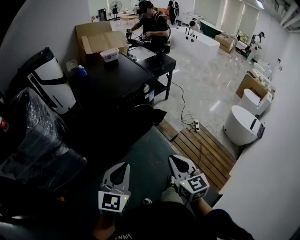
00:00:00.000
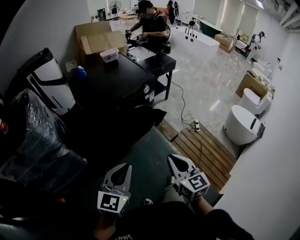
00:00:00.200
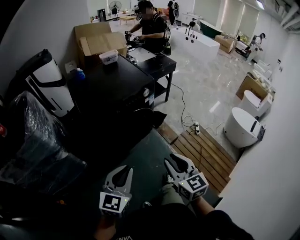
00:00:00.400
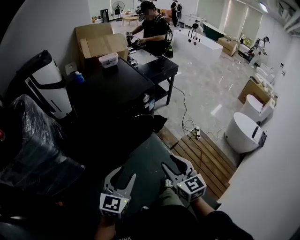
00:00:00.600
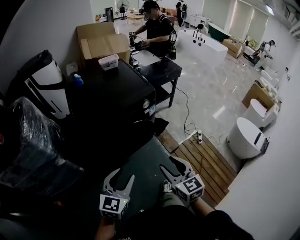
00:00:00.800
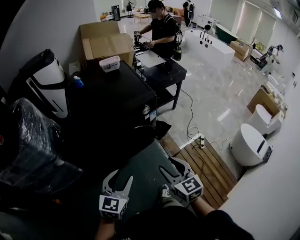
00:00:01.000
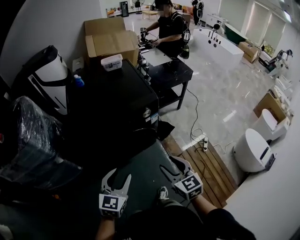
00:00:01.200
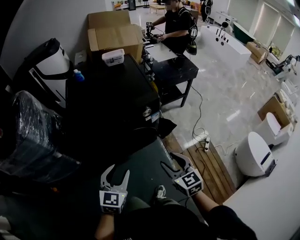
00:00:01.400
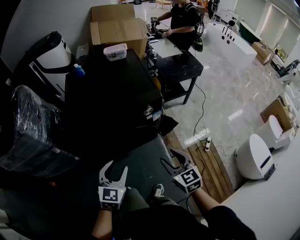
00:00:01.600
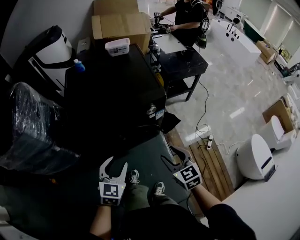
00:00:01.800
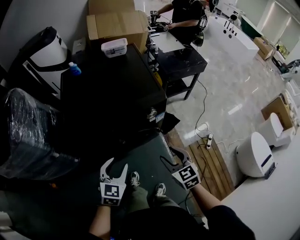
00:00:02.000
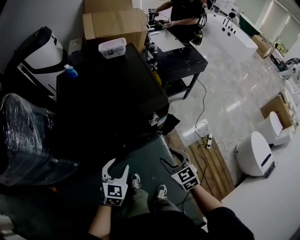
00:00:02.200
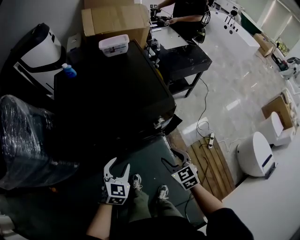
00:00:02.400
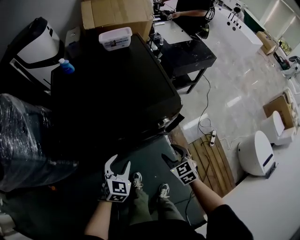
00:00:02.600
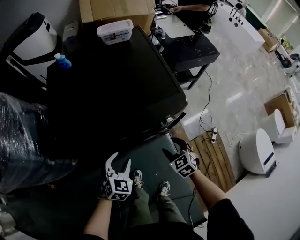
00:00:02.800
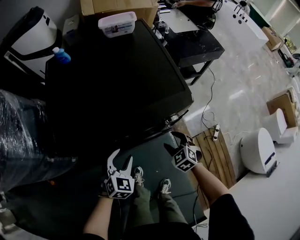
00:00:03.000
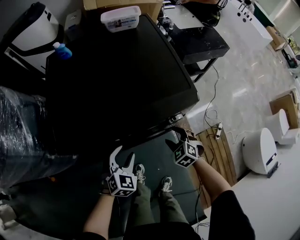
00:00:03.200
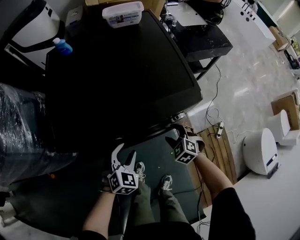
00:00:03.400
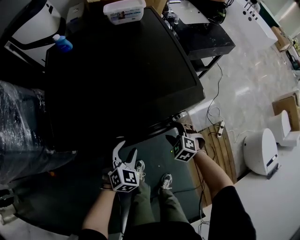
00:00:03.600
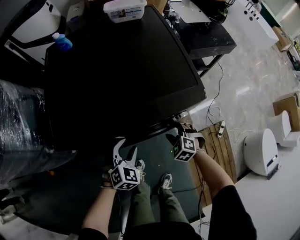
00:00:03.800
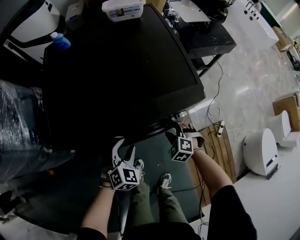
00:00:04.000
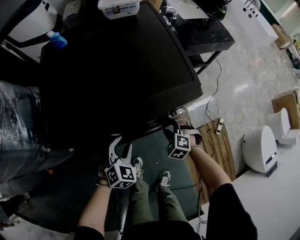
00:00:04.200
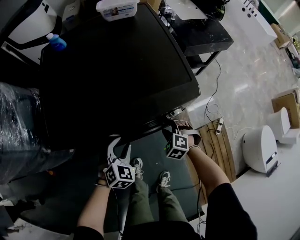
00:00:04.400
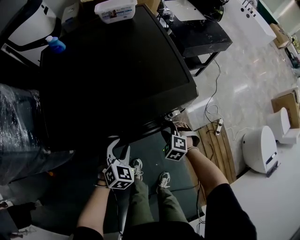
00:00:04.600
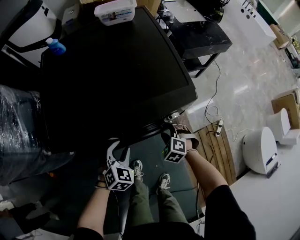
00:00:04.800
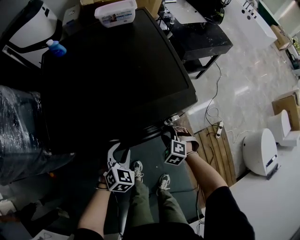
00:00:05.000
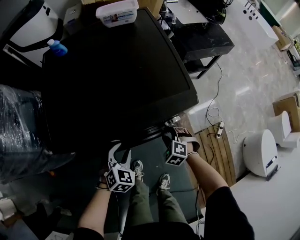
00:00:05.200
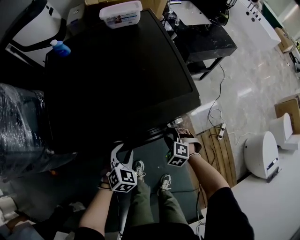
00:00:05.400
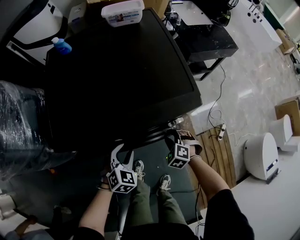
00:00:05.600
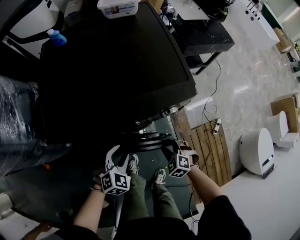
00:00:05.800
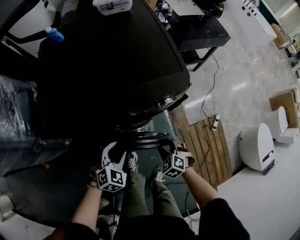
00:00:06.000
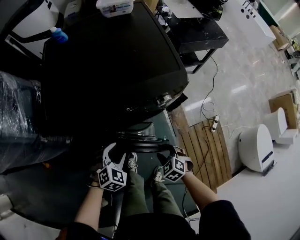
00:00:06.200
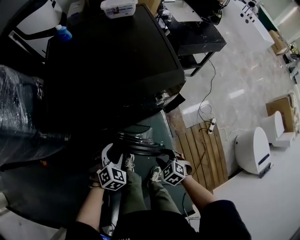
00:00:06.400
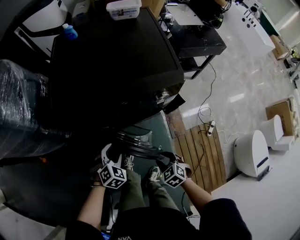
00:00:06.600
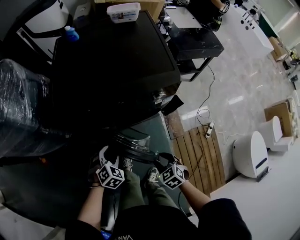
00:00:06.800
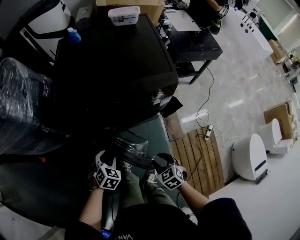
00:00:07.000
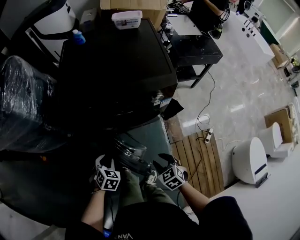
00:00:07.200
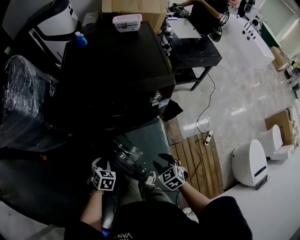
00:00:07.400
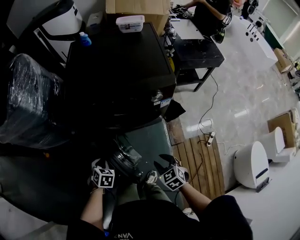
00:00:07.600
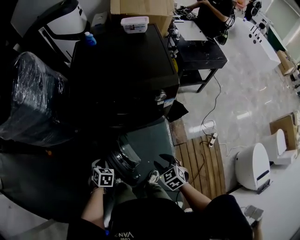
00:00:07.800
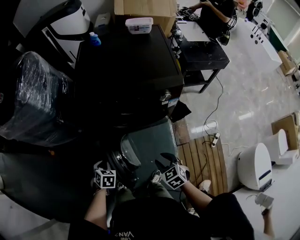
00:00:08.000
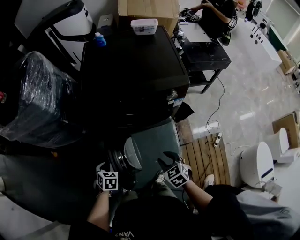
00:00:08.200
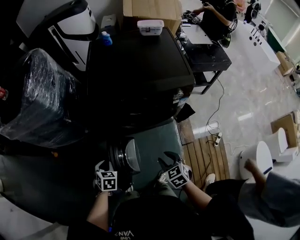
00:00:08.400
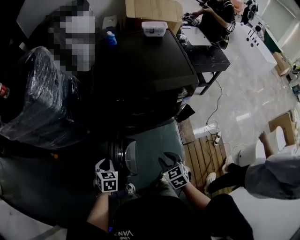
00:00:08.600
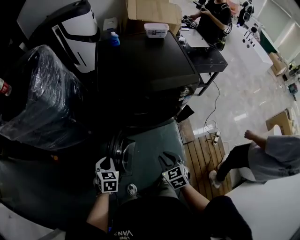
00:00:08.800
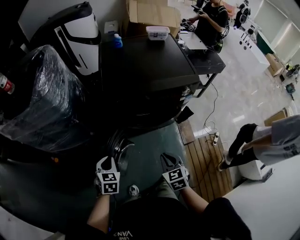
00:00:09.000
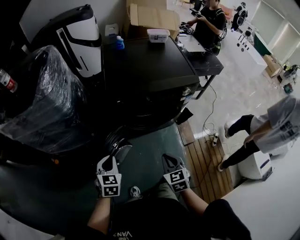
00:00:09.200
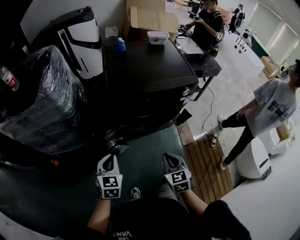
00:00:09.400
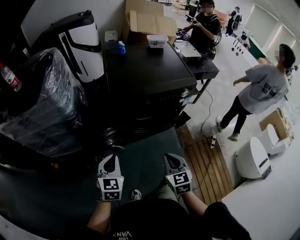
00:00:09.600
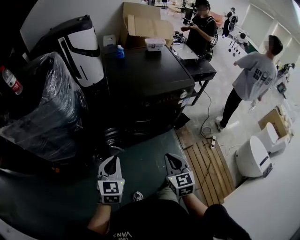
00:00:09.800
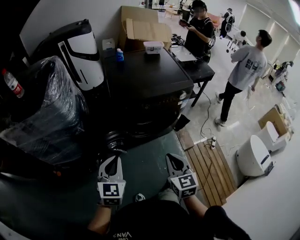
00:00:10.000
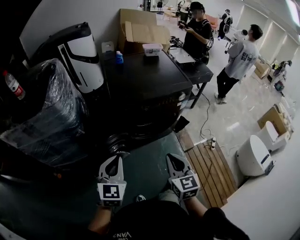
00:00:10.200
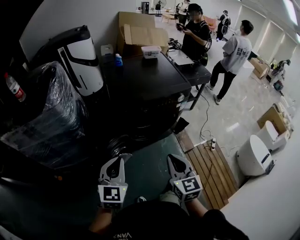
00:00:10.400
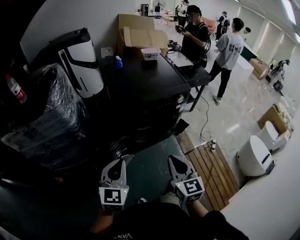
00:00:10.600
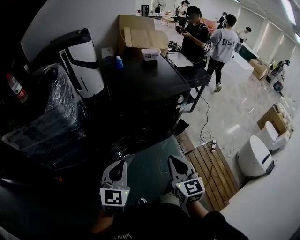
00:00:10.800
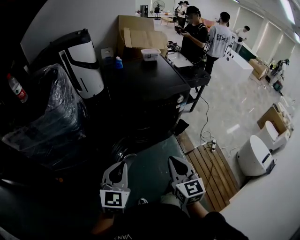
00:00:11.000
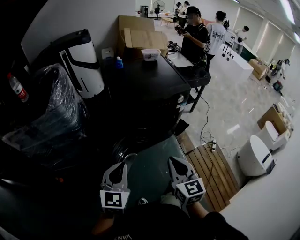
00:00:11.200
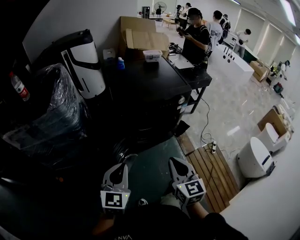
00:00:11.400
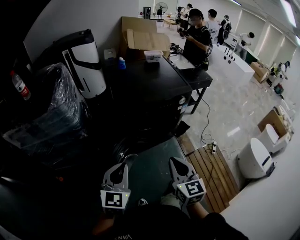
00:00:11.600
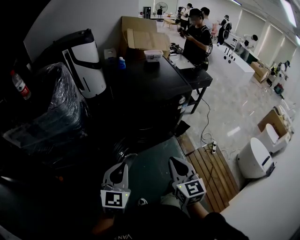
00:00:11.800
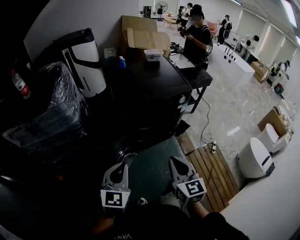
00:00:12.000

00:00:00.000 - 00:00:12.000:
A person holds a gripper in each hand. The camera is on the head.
00:00:00.000 - 00:00:01.600: The left gripper goes about 30 cm forward and to the right, turns by roughly 20 degrees, and opens its fingers, while the right gripper heads forward, covering approximately 30 cm, changes its angle by roughly 30 degrees, and opens.
00:00:01.600 - 00:00:03.000: The right gripper travels downward and forward by some 30 cm, and turns by roughly 30 degrees. The left gripper goes about 25 cm forward and downward, and turns by roughly 20 degrees.
00:00:03.000 - 00:00:04.400: The right gripper goes about 5 cm downward, turns by approximately 20 degrees, and closes.
00:00:04.400 - 00:00:06.000: The left gripper travels backward by some 5 cm, while the right gripper travels backward by about 15 cm.
00:00:06.000 - 00:00:07.600: The left gripper shifts by roughly 20 cm, rotates about 50 degrees, and closes up, while the right gripper ends up some 20 cm from where it was.
00:00:07.600 - 00:00:09.000: The grippers both shift to the left and upward by approximately 20 cm. The left gripper changes its angle by some 20 degrees, while the right gripper closes its fingers.
00:00:09.000 - 00:00:10.400: The left gripper heads upward, covering about 20 cm, and swivels about 30 degrees. Meanwhile the right gripper moves upward and backward, roughly 15 cm, and turns by roughly 30 degrees.
00:00:10.400 - 00:00:12.000: The grippers make only small movements.

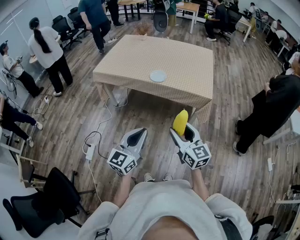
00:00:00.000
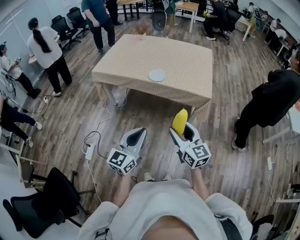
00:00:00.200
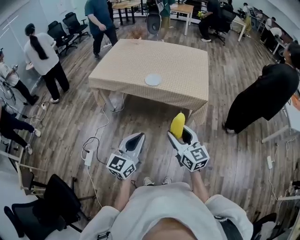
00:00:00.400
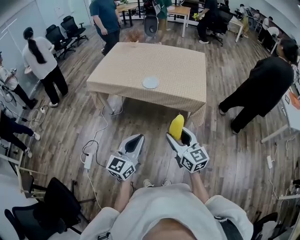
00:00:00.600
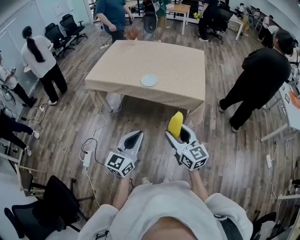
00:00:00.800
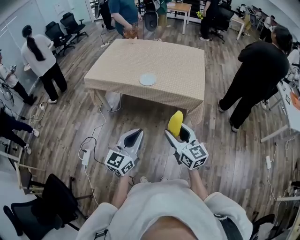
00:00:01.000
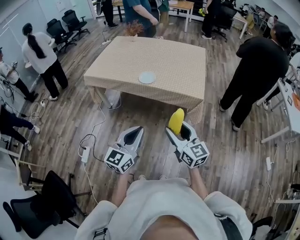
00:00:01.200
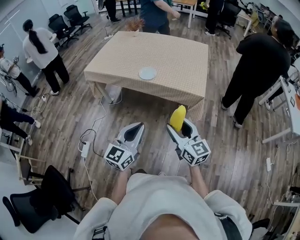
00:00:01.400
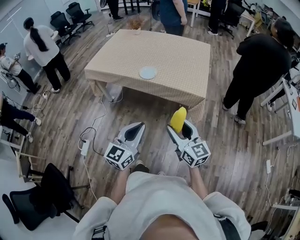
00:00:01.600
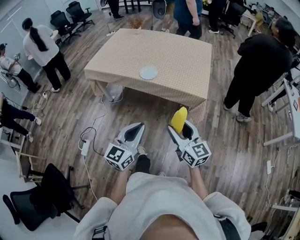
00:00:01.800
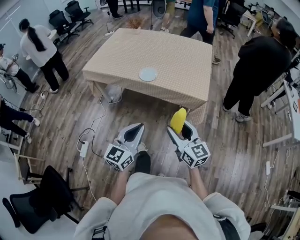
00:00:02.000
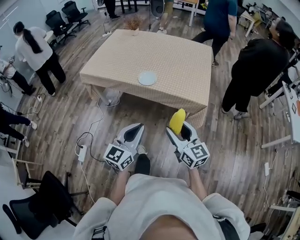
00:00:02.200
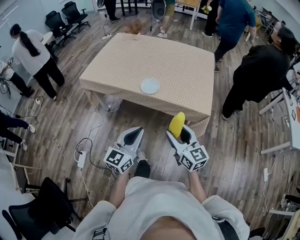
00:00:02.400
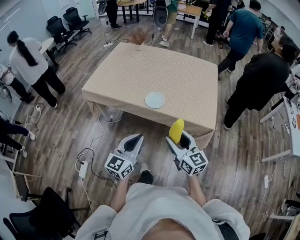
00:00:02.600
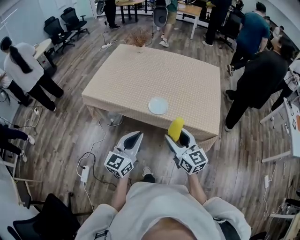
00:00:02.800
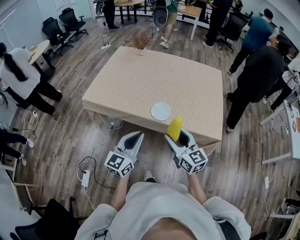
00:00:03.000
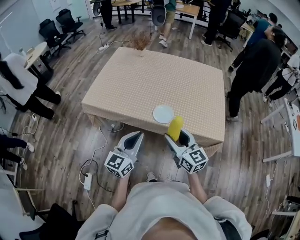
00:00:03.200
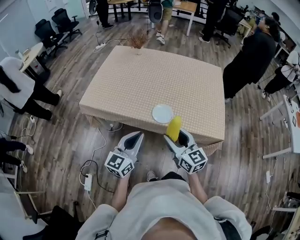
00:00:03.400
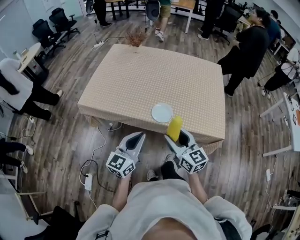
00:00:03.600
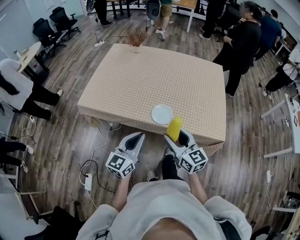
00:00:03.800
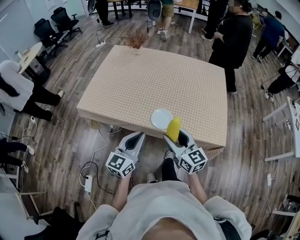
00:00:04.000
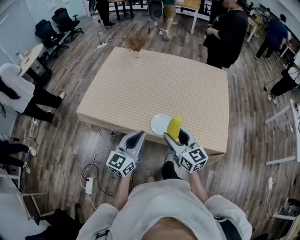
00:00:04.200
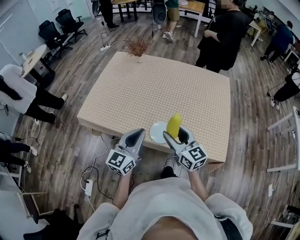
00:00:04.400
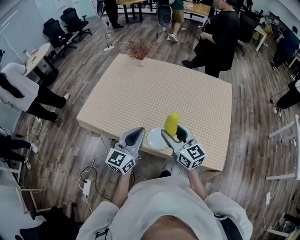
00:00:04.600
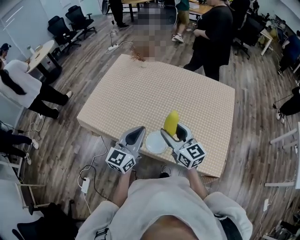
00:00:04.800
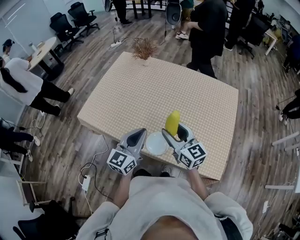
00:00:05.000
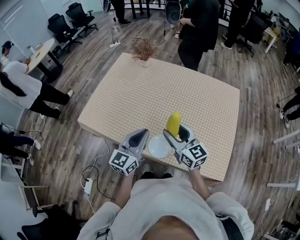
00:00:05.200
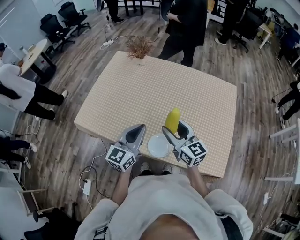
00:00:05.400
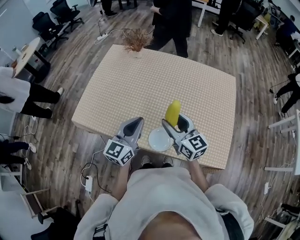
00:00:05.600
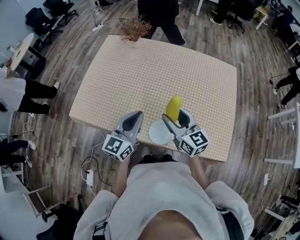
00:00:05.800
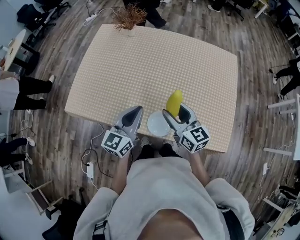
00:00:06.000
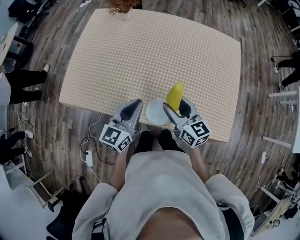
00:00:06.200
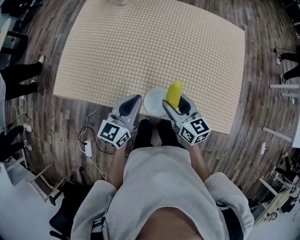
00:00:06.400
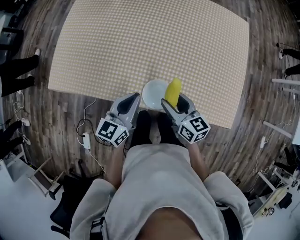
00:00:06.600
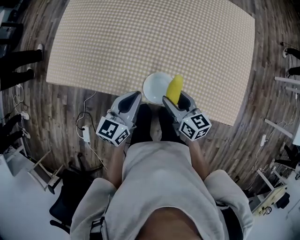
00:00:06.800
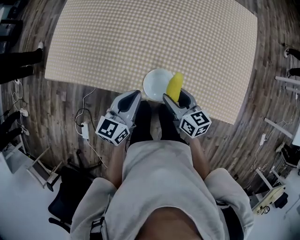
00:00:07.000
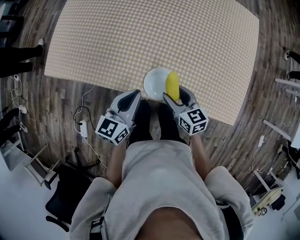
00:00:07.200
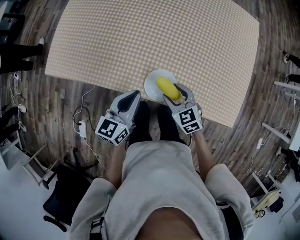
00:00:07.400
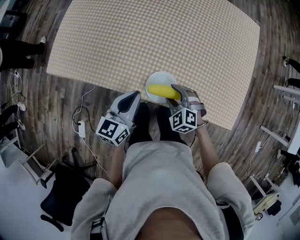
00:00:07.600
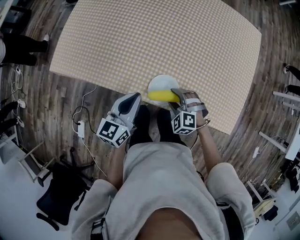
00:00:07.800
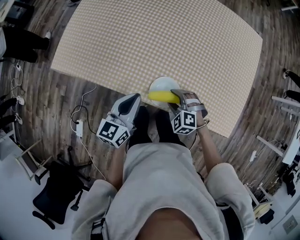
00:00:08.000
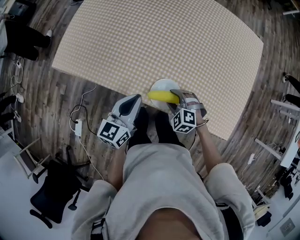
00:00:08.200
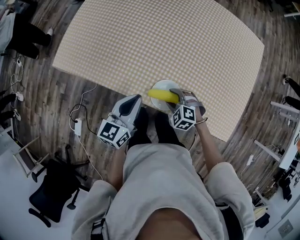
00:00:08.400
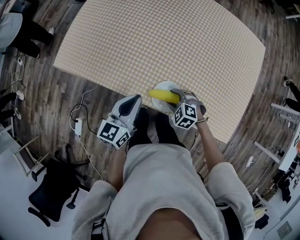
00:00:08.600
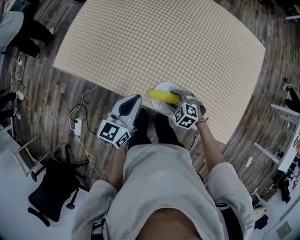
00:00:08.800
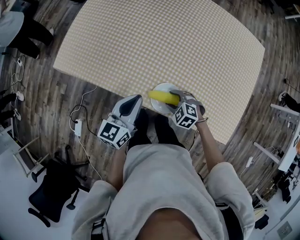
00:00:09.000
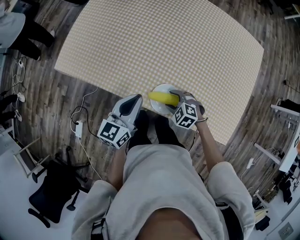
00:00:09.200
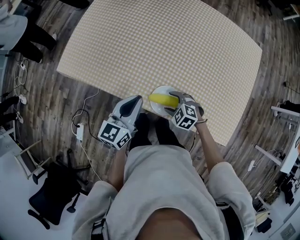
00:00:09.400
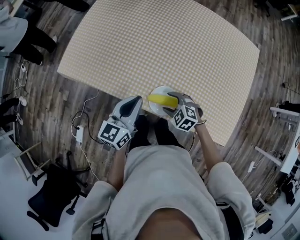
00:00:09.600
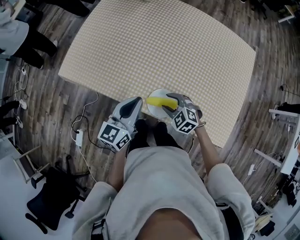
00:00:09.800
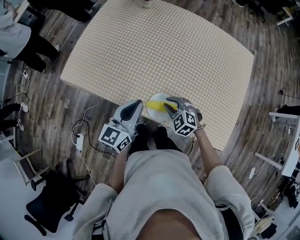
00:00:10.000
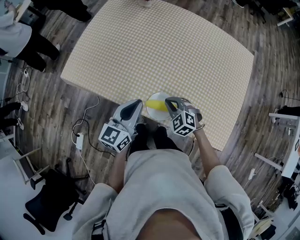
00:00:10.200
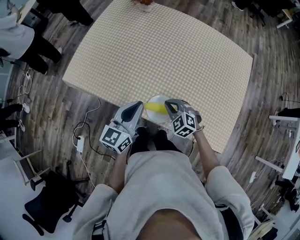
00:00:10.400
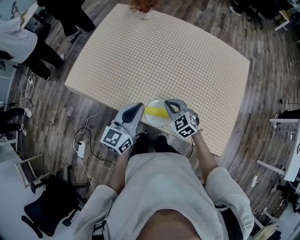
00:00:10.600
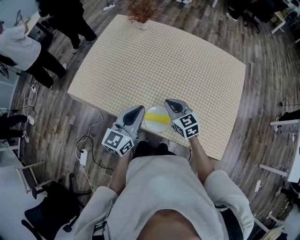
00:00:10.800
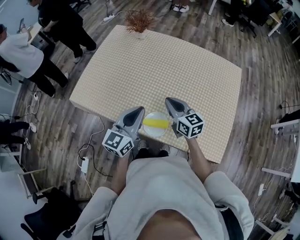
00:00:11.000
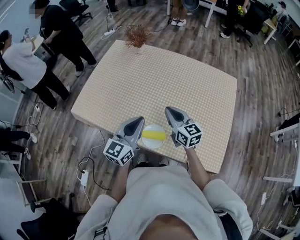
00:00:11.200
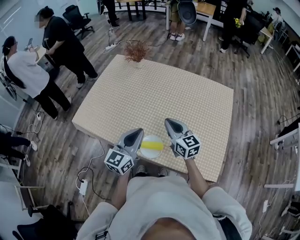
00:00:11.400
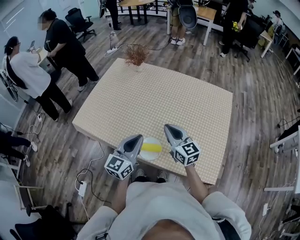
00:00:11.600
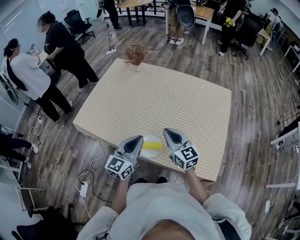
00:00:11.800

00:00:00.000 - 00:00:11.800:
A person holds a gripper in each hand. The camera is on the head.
00:00:00.000 - 00:00:01.400: The grippers both shift to the right by some 10 cm.
00:00:01.400 - 00:00:03.000: Both grippers move forward and to the left, some 35 cm.
00:00:03.000 - 00:00:04.400: The two grippers go approximately 20 cm forward.
00:00:04.400 - 00:00:06.000: Both grippers move forward, roughly 15 cm.
00:00:06.000 - 00:00:07.400: The left gripper shifts roughly 15 cm downward and backward; the right gripper travels downward by some 20 cm, and tips its fingers downward by approximately 30 degrees.
00:00:07.400 - 00:00:08.800: The right gripper shifts some 5 cm downward, and turns by approximately 40 degrees.
00:00:08.800 - 00:00:10.400: The two grippers go approximately 10 cm upward. The right gripper closes.
00:00:10.400 - 00:00:11.800: The left gripper travels upward, to the right and backward by about 10 cm, while the right gripper shifts some 20 cm upward, and angles its fingers upward, by approximately 40 degrees.
